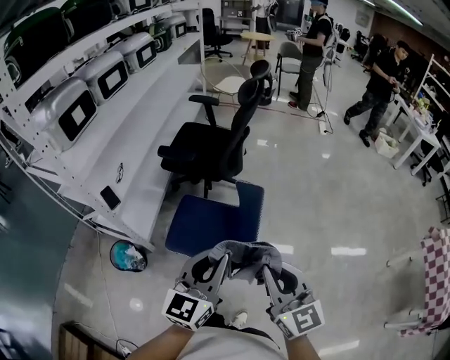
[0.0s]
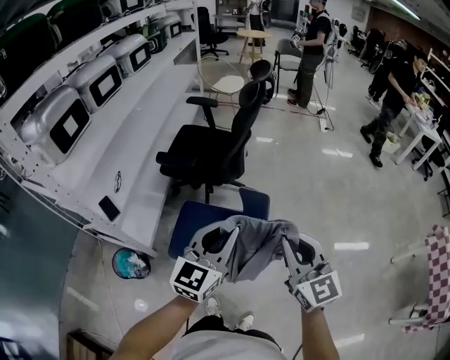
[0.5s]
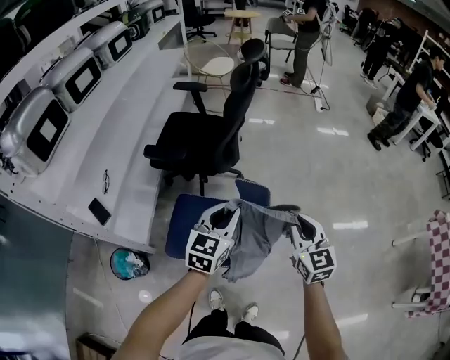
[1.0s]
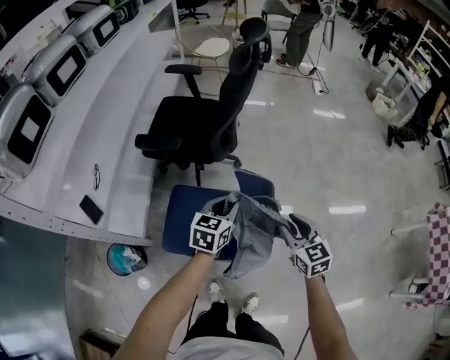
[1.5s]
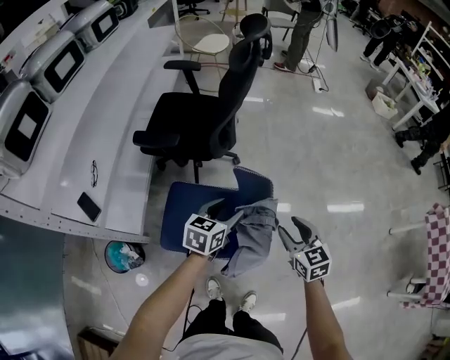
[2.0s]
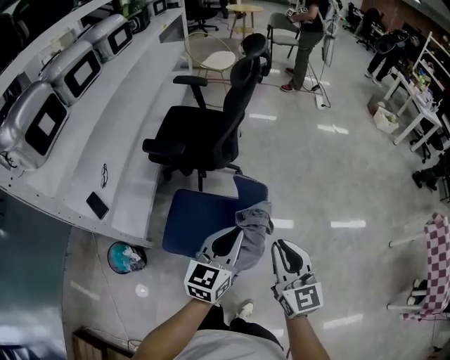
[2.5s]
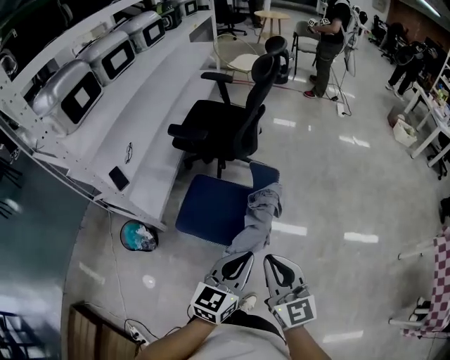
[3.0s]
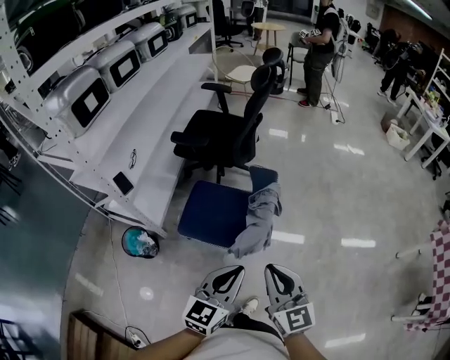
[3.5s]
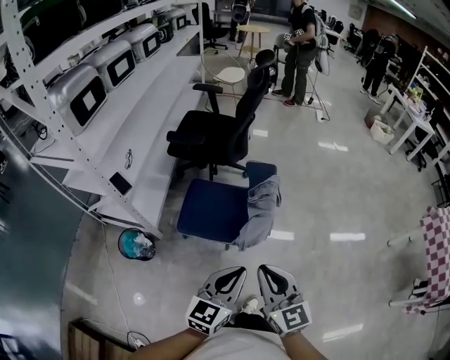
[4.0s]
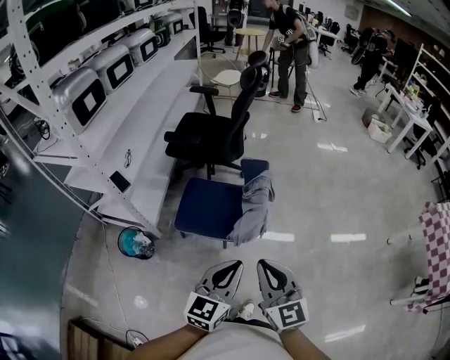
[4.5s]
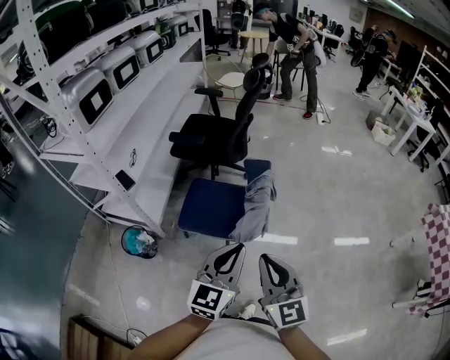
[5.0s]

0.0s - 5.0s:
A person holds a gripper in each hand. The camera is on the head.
0.0s - 2.5s: The grippers both shift forward and downward by approximately 15 cm. The left gripper opens, then closes once more. Meanwhile the right gripper opens, then closes again.
2.5s - 5.0s: Both grippers travel together backward, roughly 30 cm.

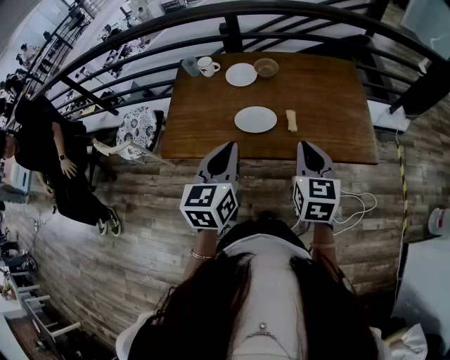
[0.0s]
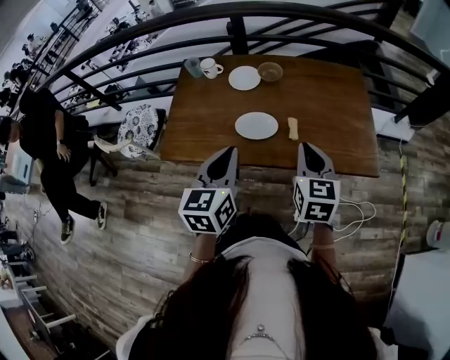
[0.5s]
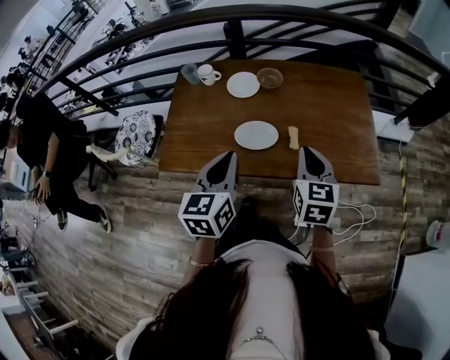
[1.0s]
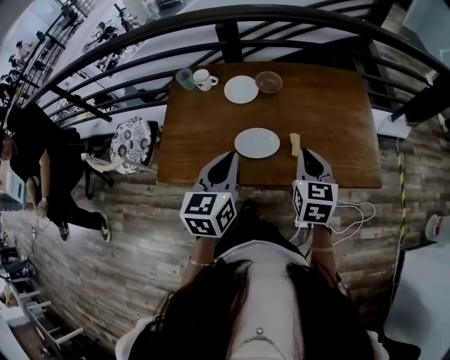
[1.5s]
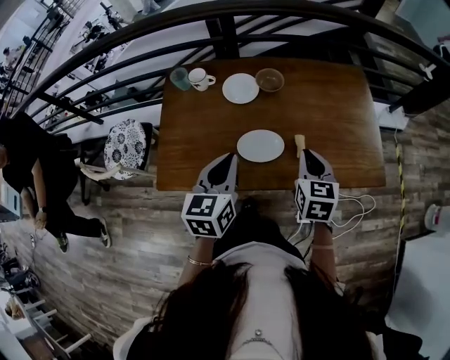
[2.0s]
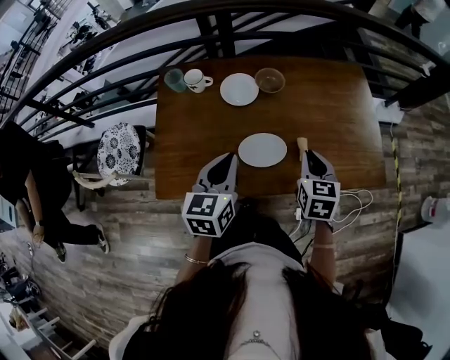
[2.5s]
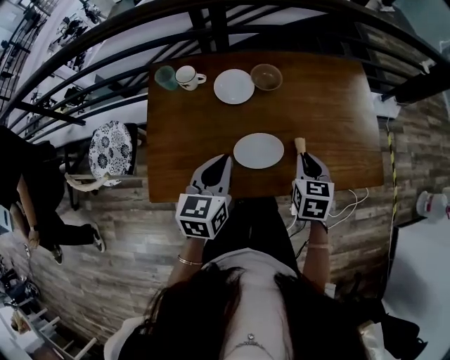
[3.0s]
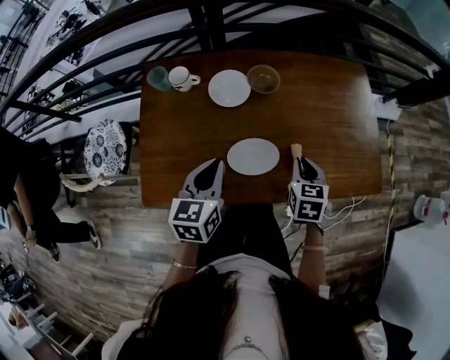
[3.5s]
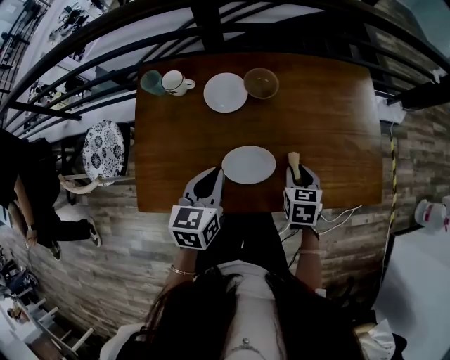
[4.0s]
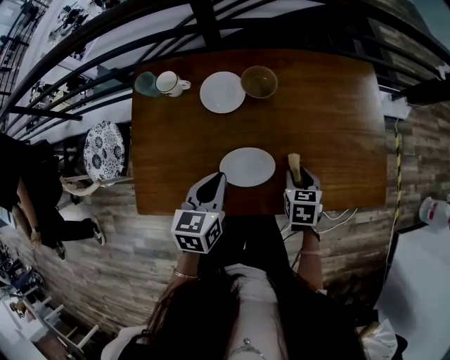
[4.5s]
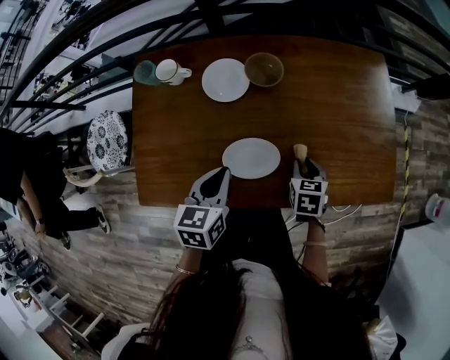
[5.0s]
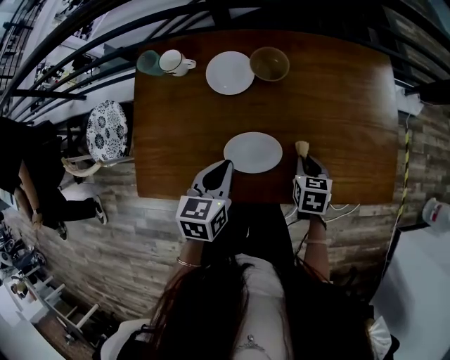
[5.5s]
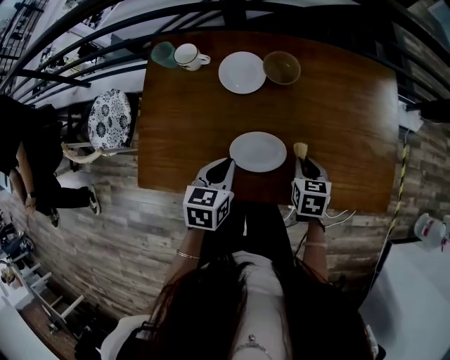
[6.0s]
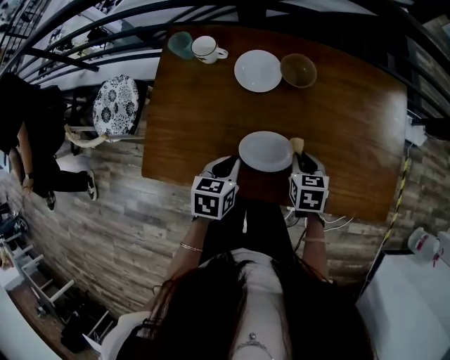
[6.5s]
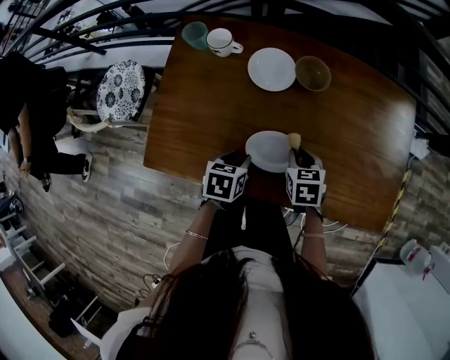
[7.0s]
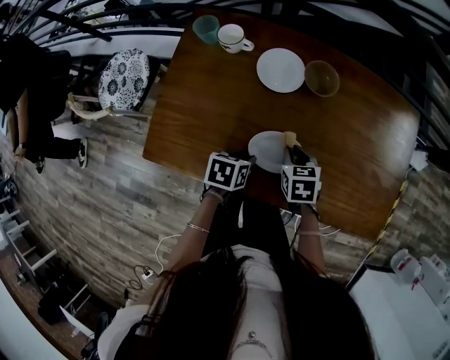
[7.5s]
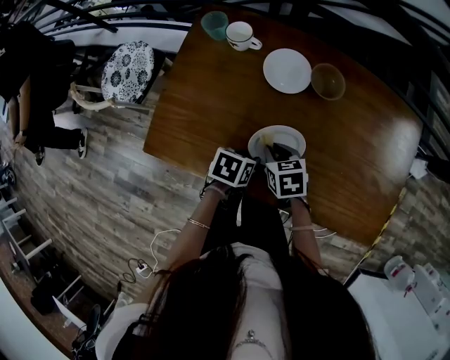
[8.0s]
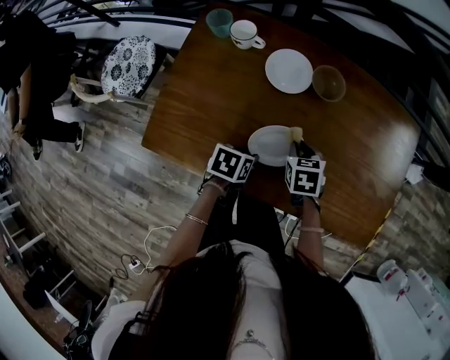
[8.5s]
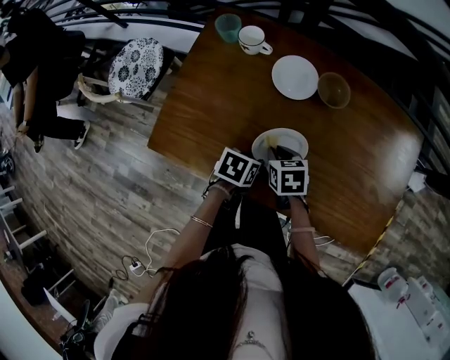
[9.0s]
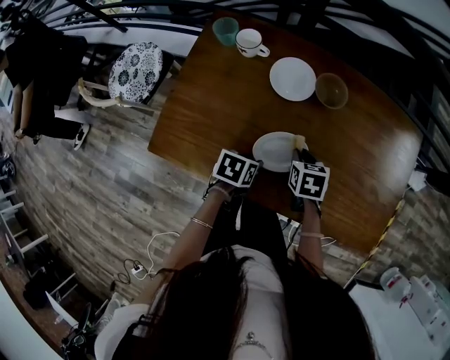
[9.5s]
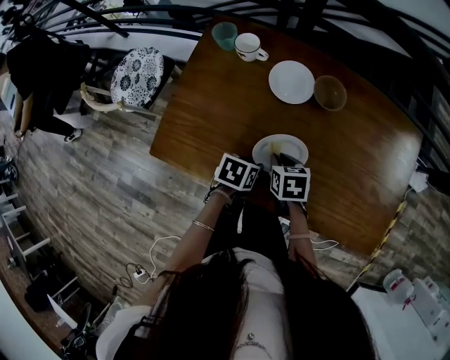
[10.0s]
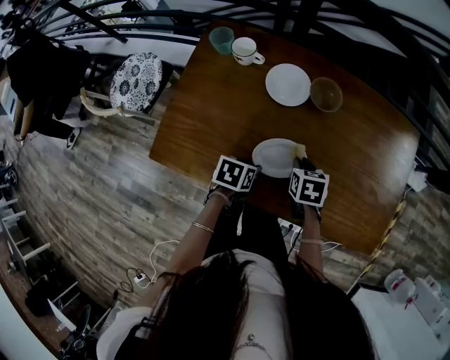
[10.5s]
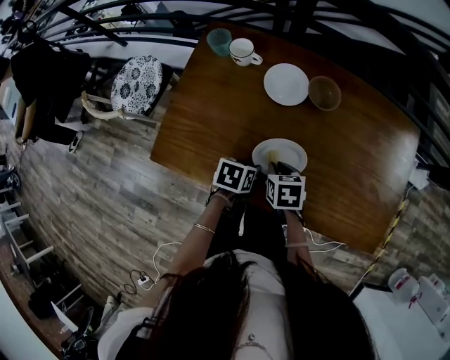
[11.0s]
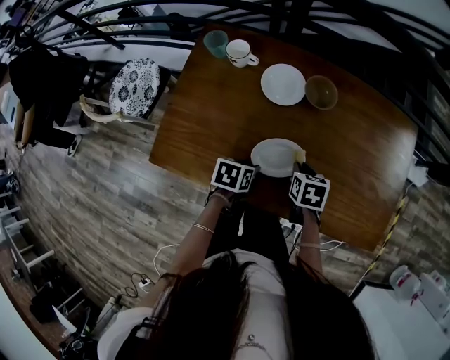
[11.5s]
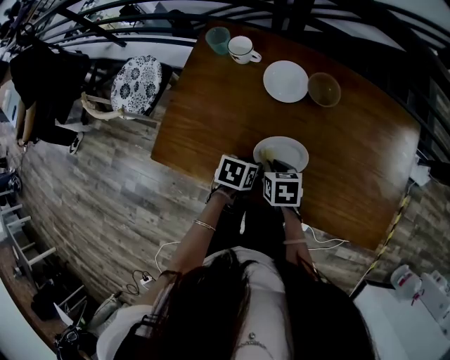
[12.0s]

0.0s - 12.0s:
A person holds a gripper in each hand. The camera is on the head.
0.0s - 2.0s: The grippers both shift forward and downward by some 15 cm.
2.0s - 4.0s: The two grippers go about 15 cm downward and forward.
4.0s - 6.0s: The left gripper travels downward by approximately 5 cm.
6.0s - 8.0s: The left gripper is displaced downward by about 10 cm, turns by approximately 30 degrees, and opens; the right gripper heads to the left, covering some 20 cm, and swivels about 30 degrees.
8.0s - 10.0s: The right gripper swings left and right, roughly 10 cm each way, with 3 reversals.
10.0s - 12.0s: The right gripper swings left and right, approximately 10 cm each way, with 3 reversals.

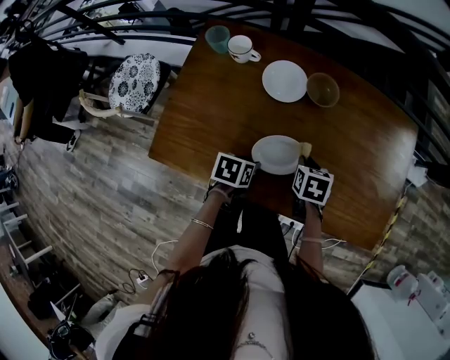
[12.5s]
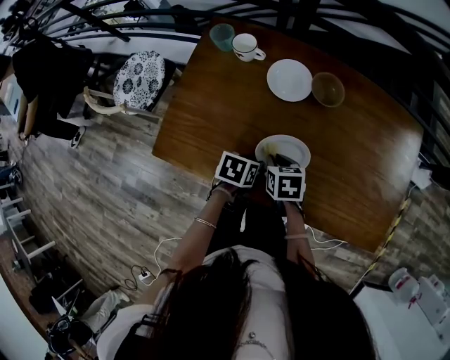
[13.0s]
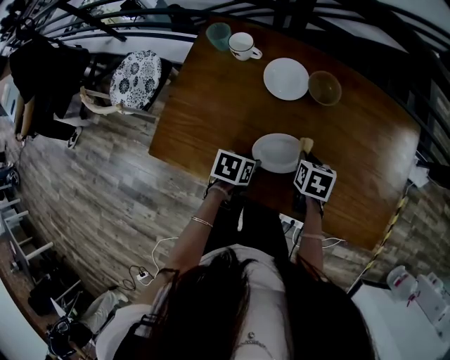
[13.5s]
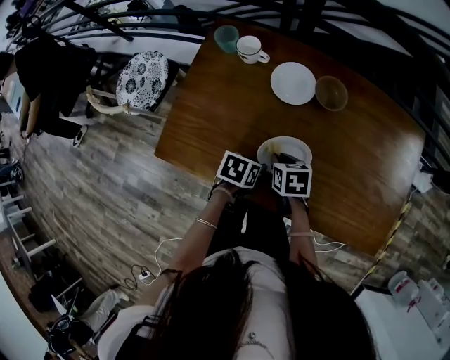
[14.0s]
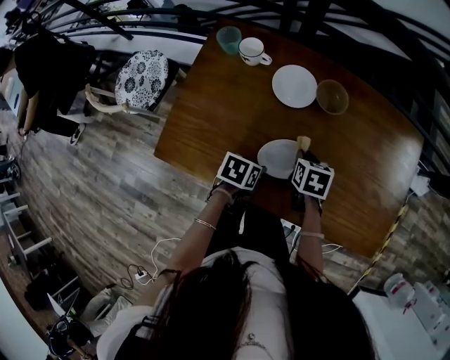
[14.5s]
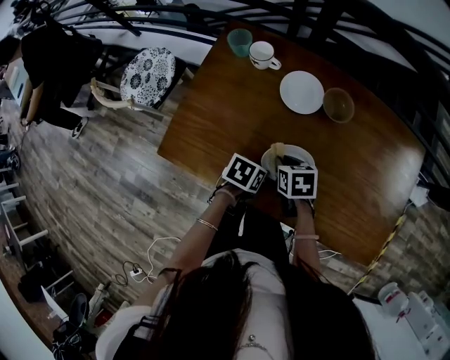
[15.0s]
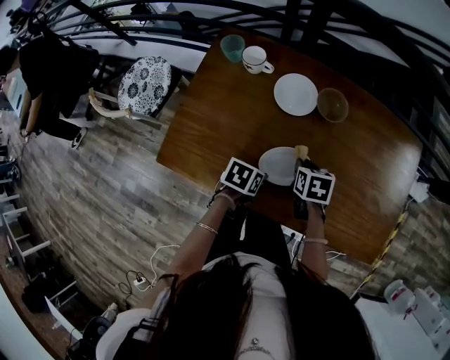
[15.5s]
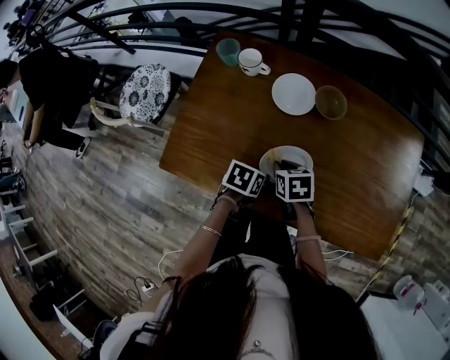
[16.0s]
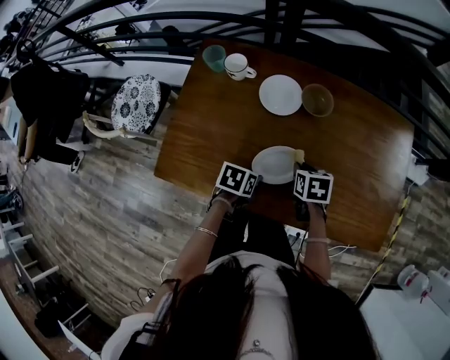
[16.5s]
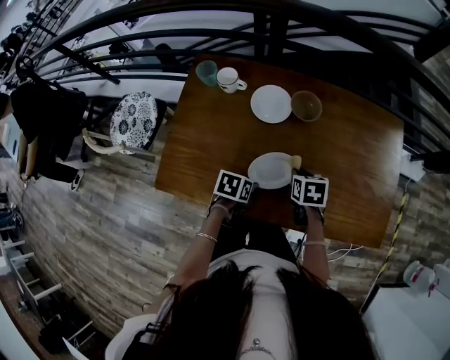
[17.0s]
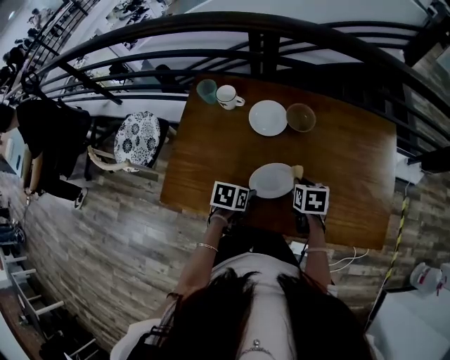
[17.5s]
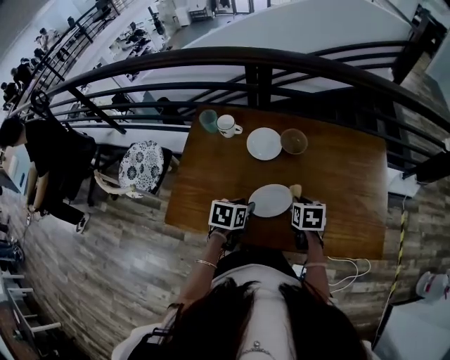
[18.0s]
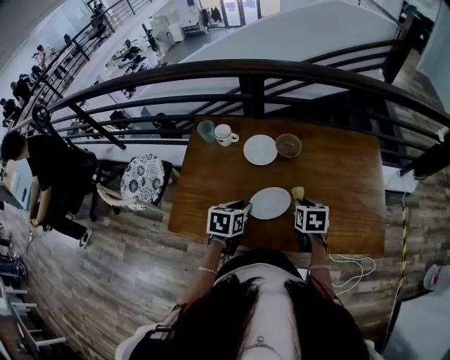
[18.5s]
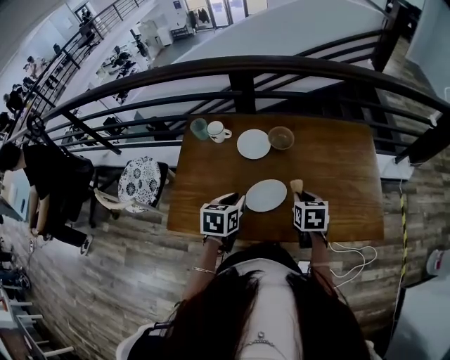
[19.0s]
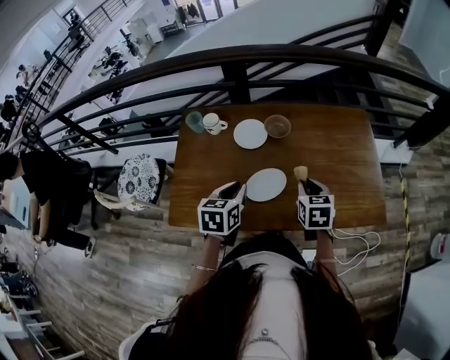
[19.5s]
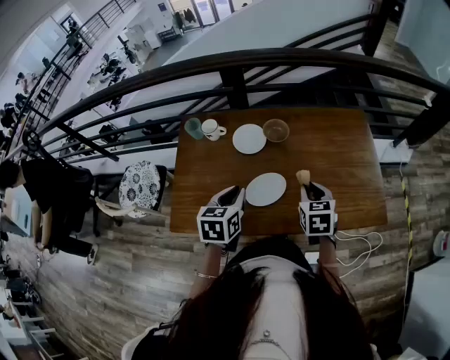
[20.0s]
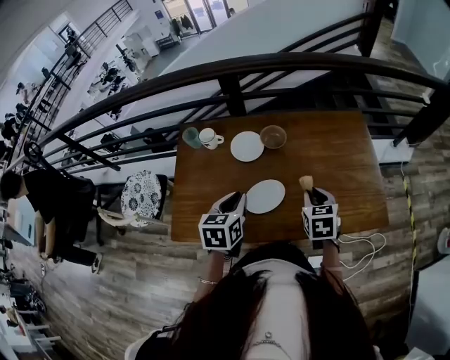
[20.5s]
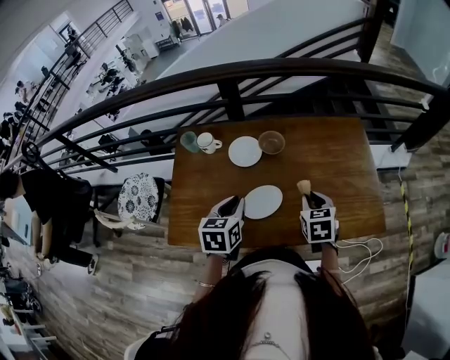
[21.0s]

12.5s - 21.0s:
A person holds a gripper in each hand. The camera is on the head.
12.5s - 14.5s: The right gripper moves left and right over some 10 cm, changing direction 3 times.
14.5s - 16.5s: The right gripper moves left and right over roughly 10 cm, changing direction 3 times.
16.5s - 19.0s: The left gripper shifts about 15 cm upward, and turns by some 30 degrees; the right gripper shifts roughly 15 cm upward and to the right.
19.0s - 21.0s: The left gripper shifts by some 5 cm. Meanwhile the right gripper moves about 5 cm.

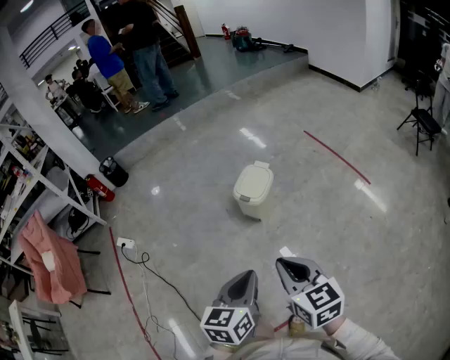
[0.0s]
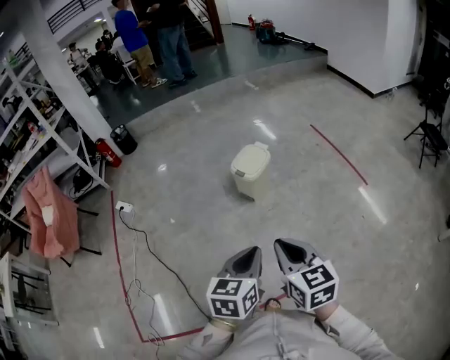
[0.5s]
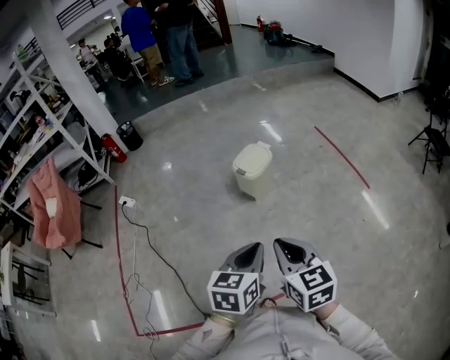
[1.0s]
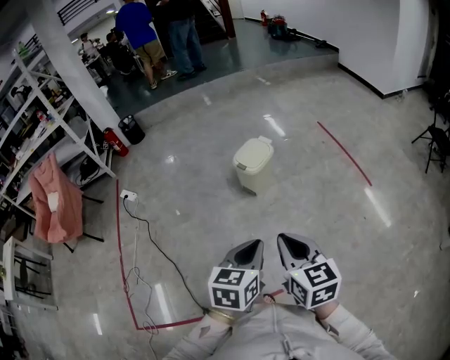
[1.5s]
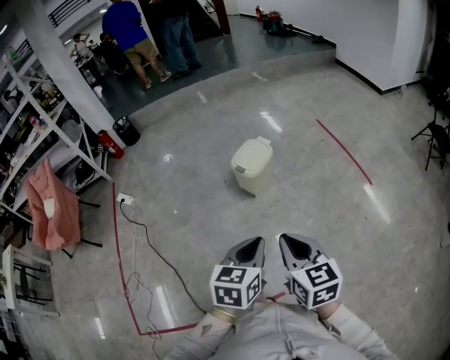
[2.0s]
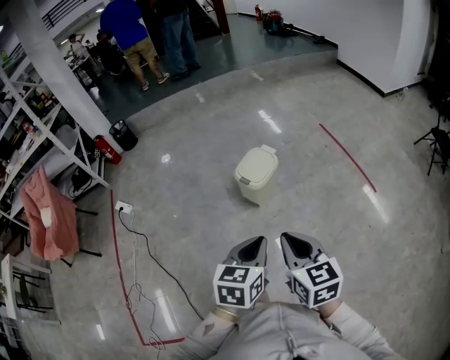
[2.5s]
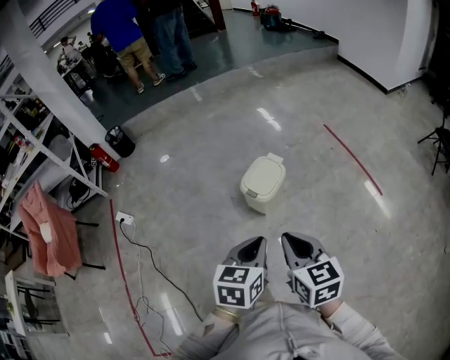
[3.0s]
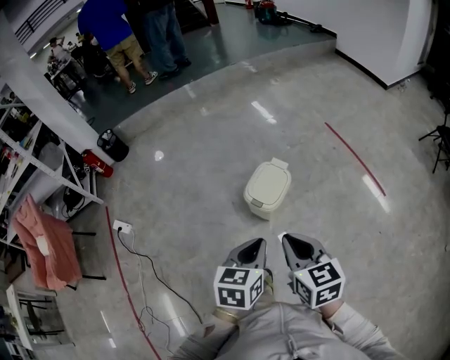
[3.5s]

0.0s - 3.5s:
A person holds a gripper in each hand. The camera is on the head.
0.0s - 2.0s: The right gripper goes some 10 cm to the right and backward; the left gripper moves to the right, about 10 cm.
2.0s - 3.5s: Both grippers travel together forward, approximately 30 cm.
